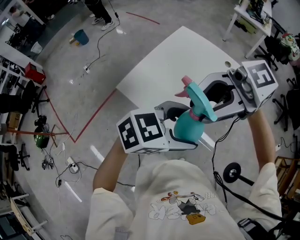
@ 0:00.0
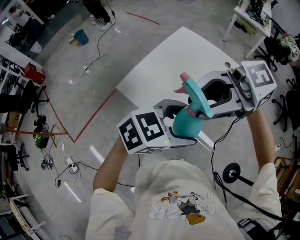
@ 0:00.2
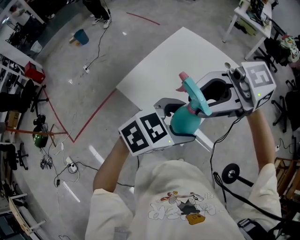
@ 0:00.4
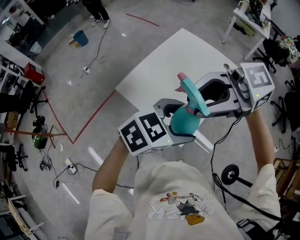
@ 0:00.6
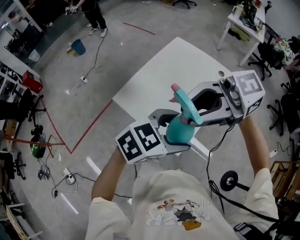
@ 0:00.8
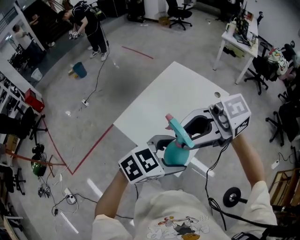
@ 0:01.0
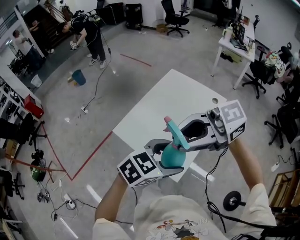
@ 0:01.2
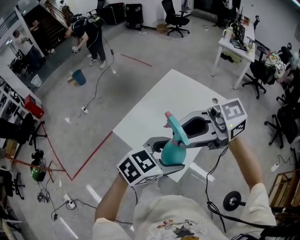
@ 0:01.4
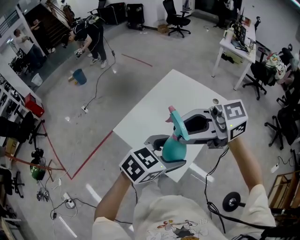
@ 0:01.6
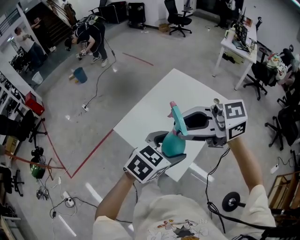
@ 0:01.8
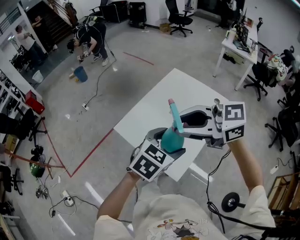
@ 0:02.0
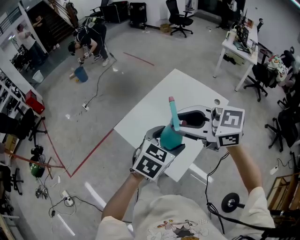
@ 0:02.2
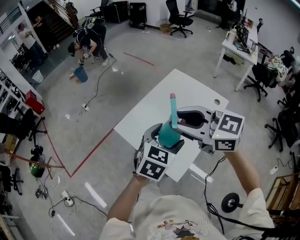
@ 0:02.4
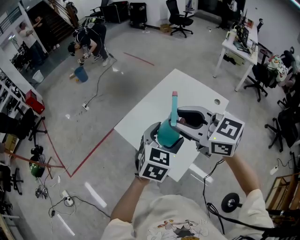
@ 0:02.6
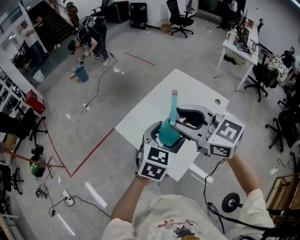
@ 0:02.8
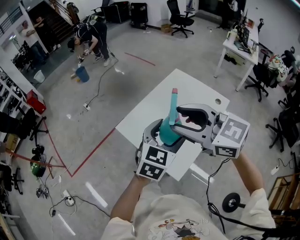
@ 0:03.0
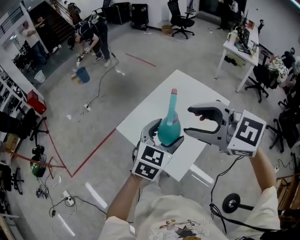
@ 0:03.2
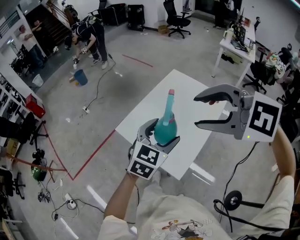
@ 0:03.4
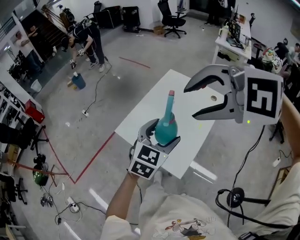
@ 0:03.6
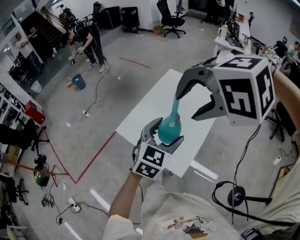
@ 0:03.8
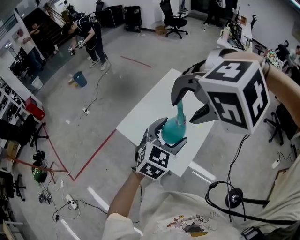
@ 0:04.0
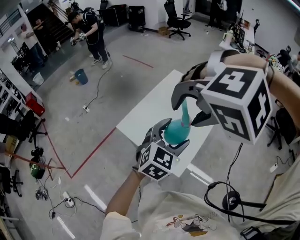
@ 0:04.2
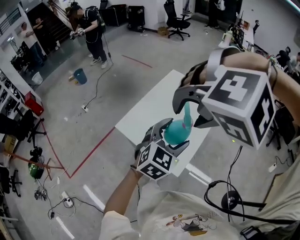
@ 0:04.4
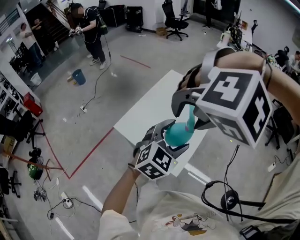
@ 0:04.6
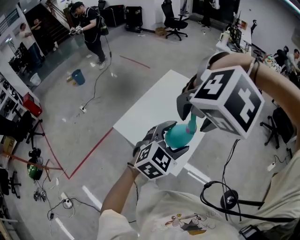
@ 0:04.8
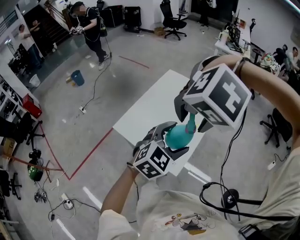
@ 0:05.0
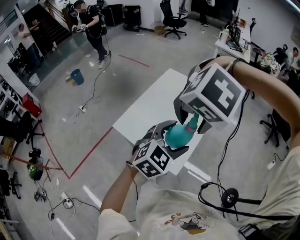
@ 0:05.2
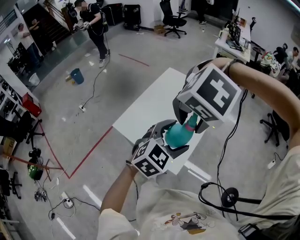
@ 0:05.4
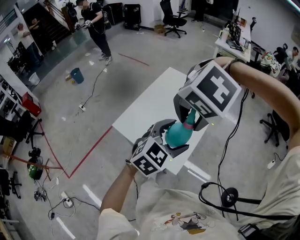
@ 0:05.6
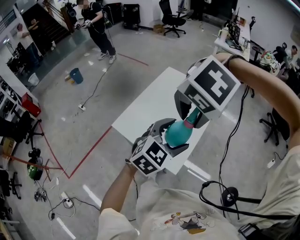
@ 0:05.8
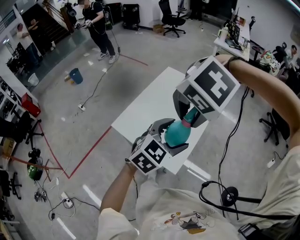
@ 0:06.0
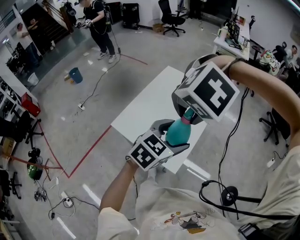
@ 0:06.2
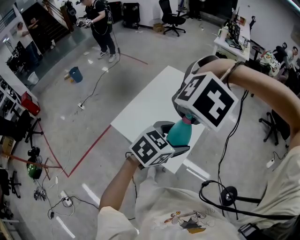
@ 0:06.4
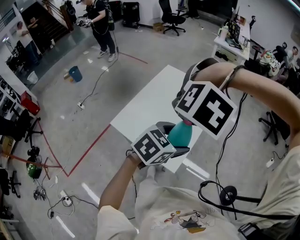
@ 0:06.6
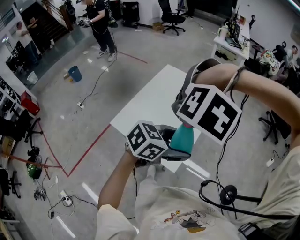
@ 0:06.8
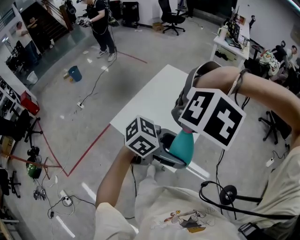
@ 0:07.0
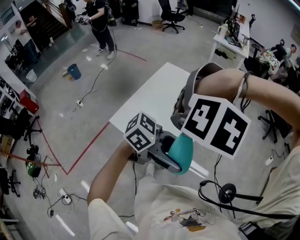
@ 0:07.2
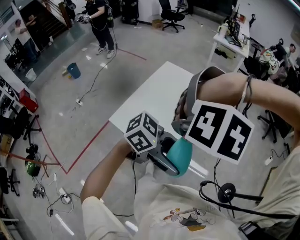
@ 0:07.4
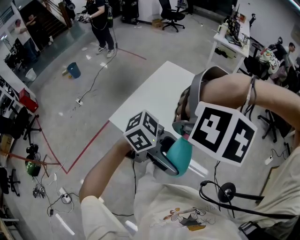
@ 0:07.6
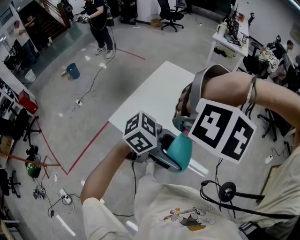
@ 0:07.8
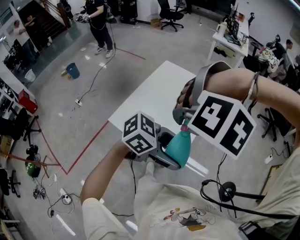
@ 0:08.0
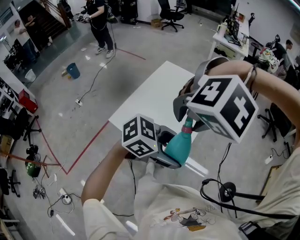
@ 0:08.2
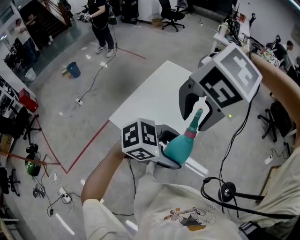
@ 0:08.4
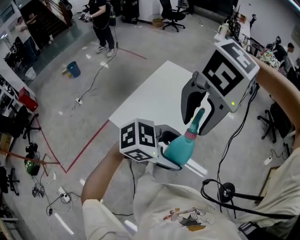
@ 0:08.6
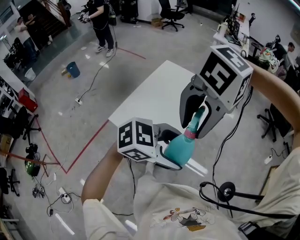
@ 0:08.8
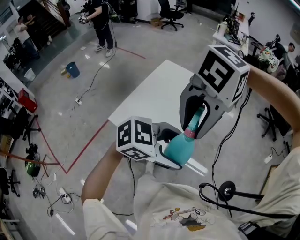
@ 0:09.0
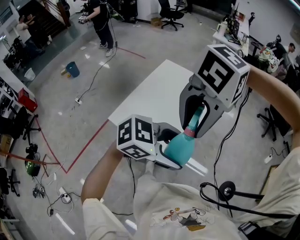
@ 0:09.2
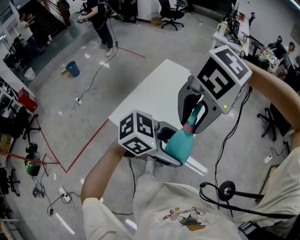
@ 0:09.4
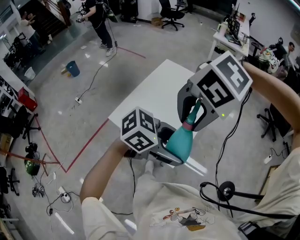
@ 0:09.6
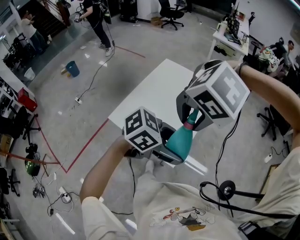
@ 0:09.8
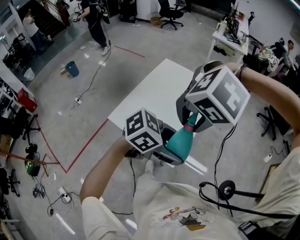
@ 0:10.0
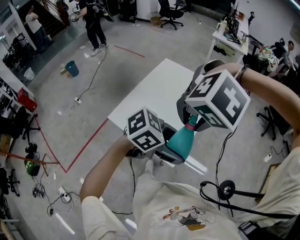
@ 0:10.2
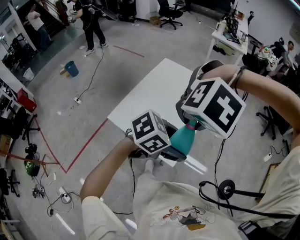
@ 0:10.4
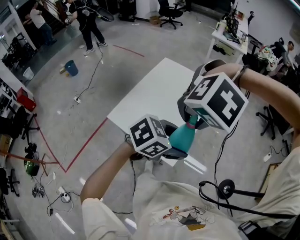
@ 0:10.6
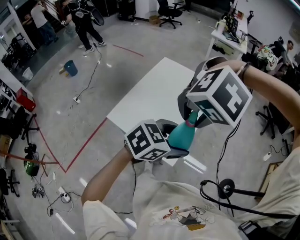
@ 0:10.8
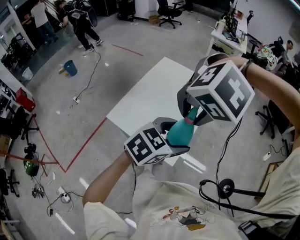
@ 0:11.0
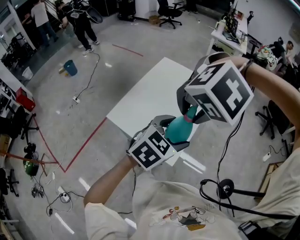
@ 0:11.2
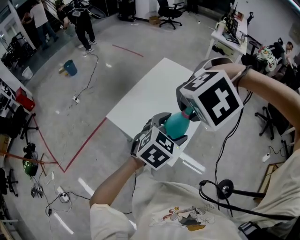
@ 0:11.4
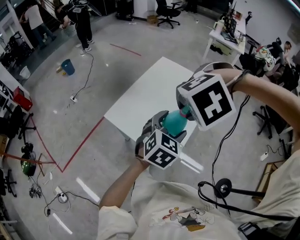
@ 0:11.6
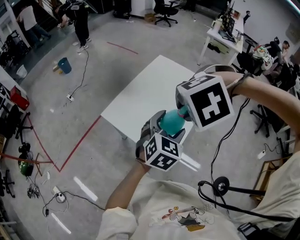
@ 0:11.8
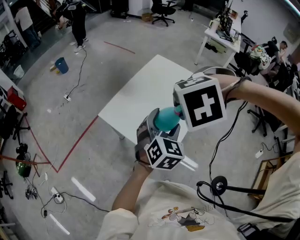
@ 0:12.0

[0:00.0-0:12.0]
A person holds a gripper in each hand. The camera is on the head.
0:00.0 to 0:01.6: The left gripper shifts by approximately 5 cm.
0:01.6 to 0:03.0: The right gripper changes its angle by approximately 40 degrees. Meanwhile the left gripper moves some 10 cm, and turns by some 30 degrees.
0:03.0 to 0:04.4: The left gripper ends up approximately 5 cm from where it was, and rotates about 20 degrees; the right gripper changes place by approximately 10 cm, and tips its fingers downward by about 60 degrees.
0:04.4 to 0:06.0: The right gripper shifts about 5 cm downward, and swivels some 30 degrees.
0:06.0 to 0:07.6: The left gripper moves about 15 cm, and swivels some 70 degrees; the right gripper changes place by some 5 cm, and swivels approximately 30 degrees.
0:07.6 to 0:09.0: The right gripper points its fingers roughly 30 degrees further upward, while the left gripper rotates roughly 20 degrees.
0:09.0 to 0:10.4: Both grippers travel together downward, roughly 5 cm. The right gripper angles its fingers downward, by about 30 degrees.
0:10.4 to 0:12.0: The right gripper ends up about 5 cm from where it was, and swivels approximately 40 degrees; the left gripper changes place by roughly 10 cm, and rotates approximately 70 degrees.

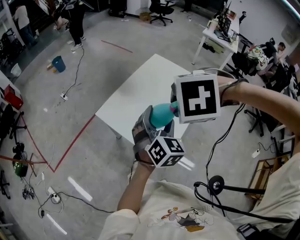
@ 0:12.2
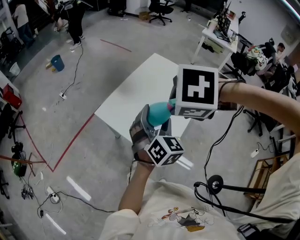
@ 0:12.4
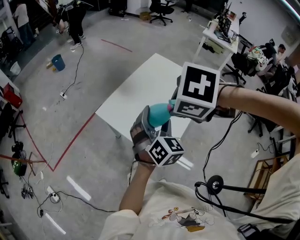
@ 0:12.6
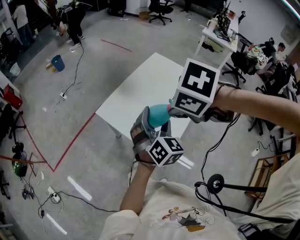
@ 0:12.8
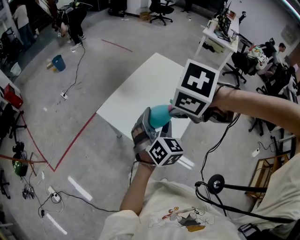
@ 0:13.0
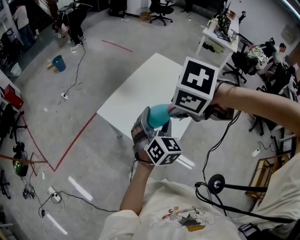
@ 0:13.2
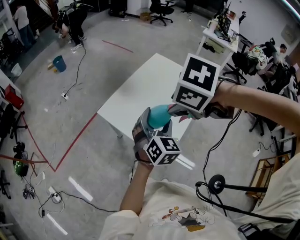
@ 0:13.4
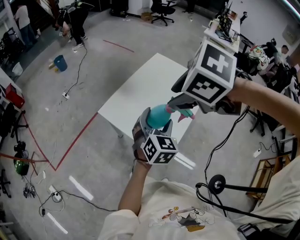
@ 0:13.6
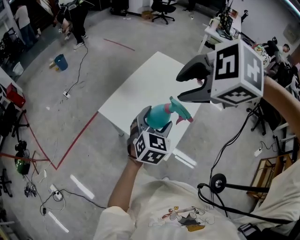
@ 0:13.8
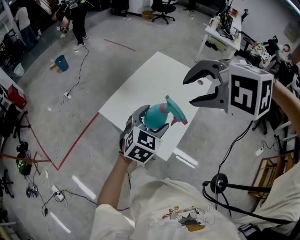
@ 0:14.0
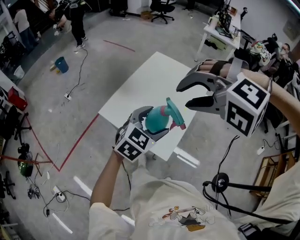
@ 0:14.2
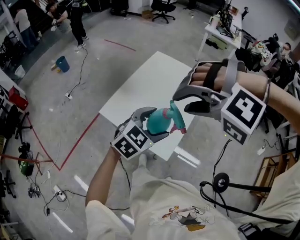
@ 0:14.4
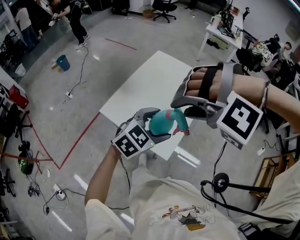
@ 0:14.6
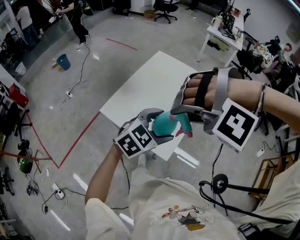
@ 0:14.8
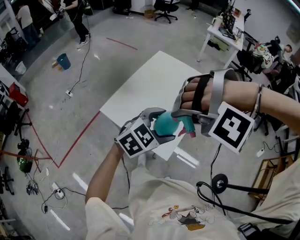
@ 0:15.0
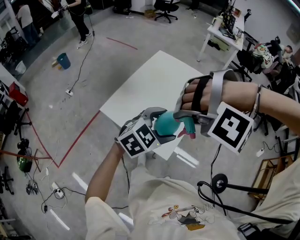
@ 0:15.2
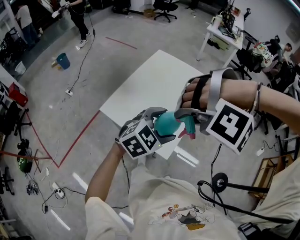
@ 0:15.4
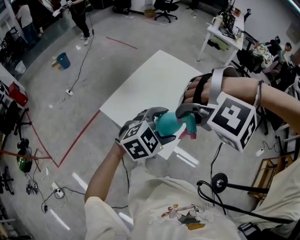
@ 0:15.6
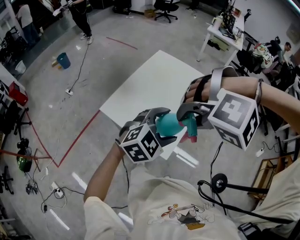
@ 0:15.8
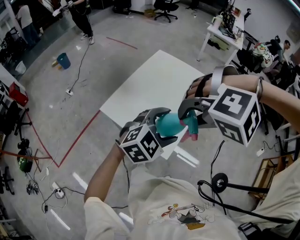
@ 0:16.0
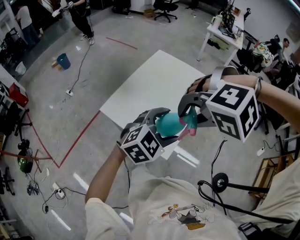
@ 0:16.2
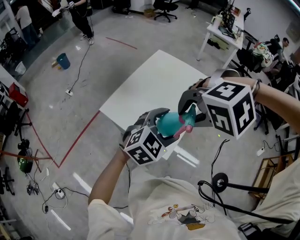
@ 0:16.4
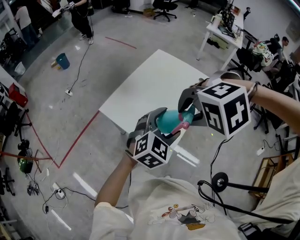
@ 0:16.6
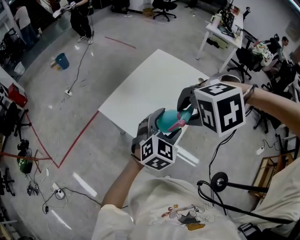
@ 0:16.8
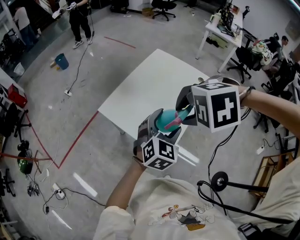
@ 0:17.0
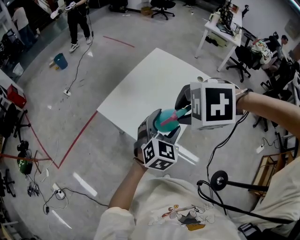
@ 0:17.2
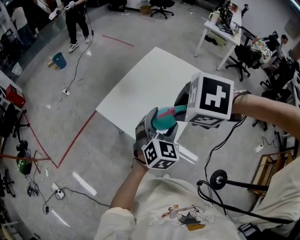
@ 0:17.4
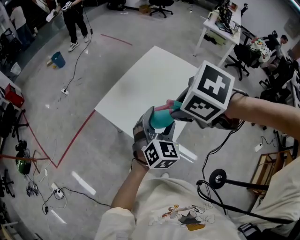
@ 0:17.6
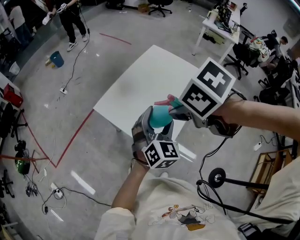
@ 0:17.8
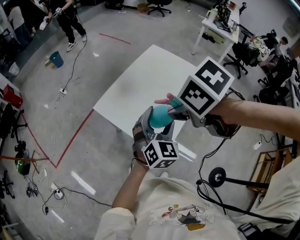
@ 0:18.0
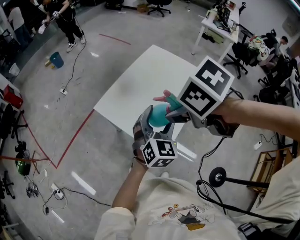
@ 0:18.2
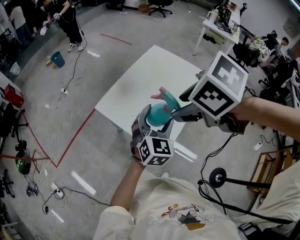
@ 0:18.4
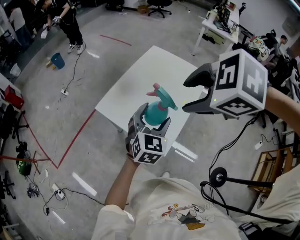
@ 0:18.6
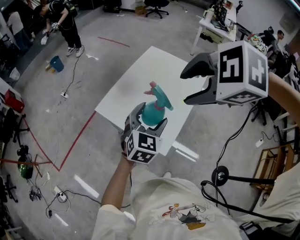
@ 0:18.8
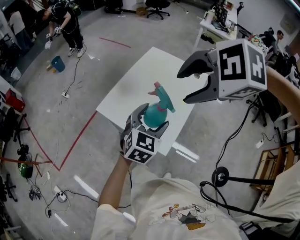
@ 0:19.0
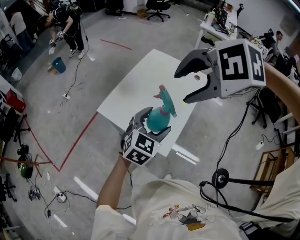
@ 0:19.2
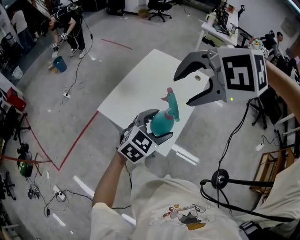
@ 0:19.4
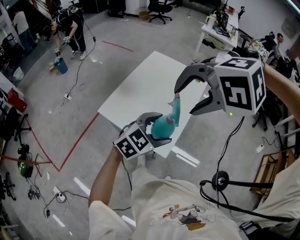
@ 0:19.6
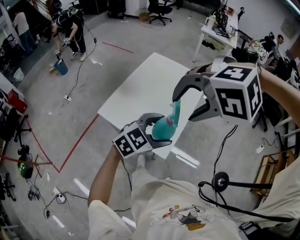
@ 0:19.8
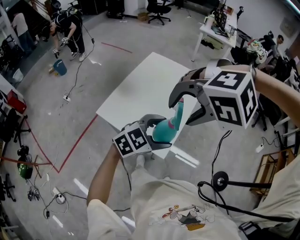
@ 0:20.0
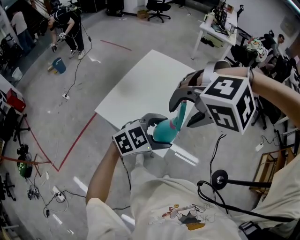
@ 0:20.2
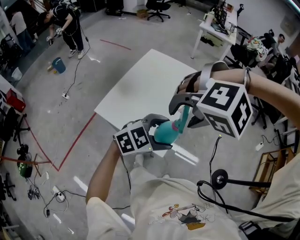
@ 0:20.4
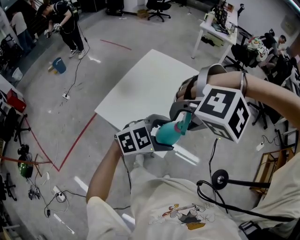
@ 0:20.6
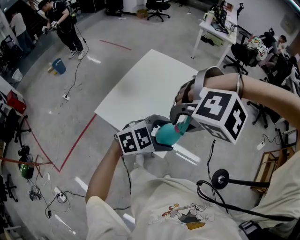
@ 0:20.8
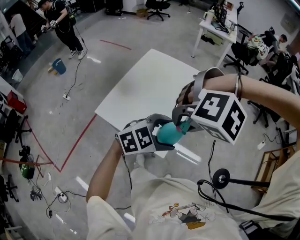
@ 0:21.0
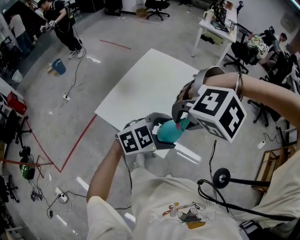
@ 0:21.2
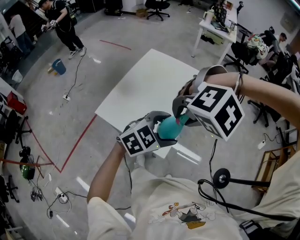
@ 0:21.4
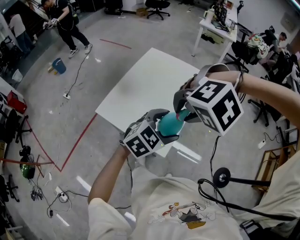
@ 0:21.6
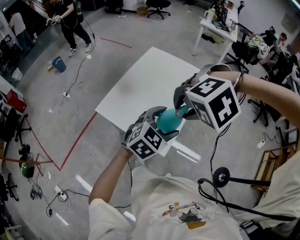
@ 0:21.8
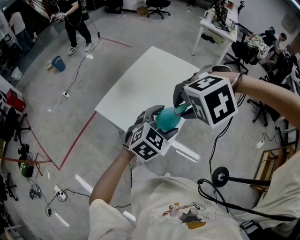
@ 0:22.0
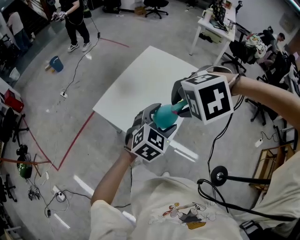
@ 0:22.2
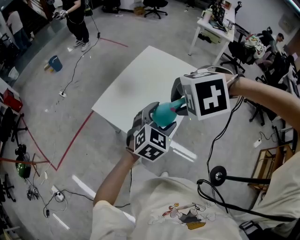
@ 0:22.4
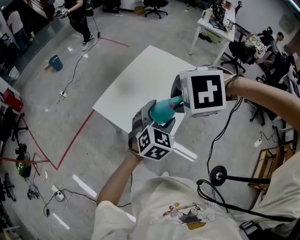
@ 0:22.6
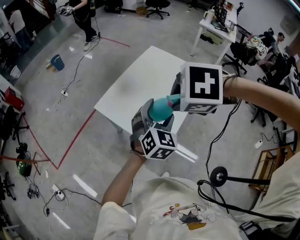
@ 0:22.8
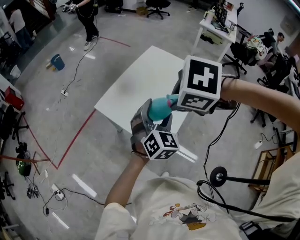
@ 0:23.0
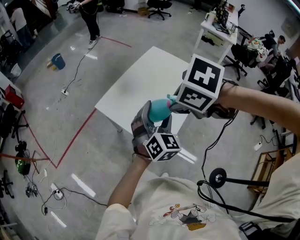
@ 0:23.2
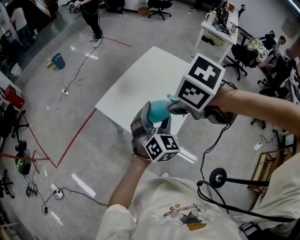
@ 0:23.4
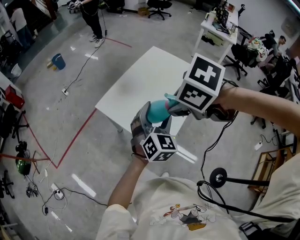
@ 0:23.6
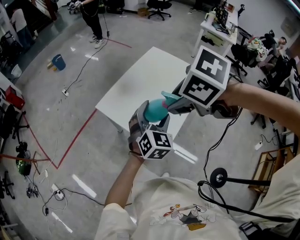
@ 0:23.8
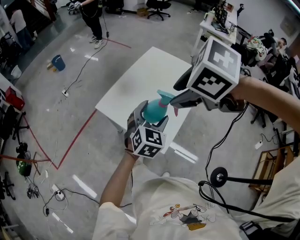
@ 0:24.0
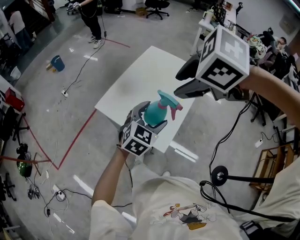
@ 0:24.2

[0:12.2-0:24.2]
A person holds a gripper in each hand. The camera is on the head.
0:12.2 to 0:13.8: The right gripper heads upward, covering approximately 5 cm, and turns by roughly 30 degrees.
0:13.8 to 0:15.2: The right gripper travels downward by about 5 cm, and twists some 70 degrees counterclockwise, seen from behind, while the left gripper shifts by roughly 5 cm, and changes its angle by approximately 40 degrees.
0:15.2 to 0:16.6: The right gripper changes its angle by some 40 degrees.
0:16.6 to 0:18.2: The left gripper changes its angle by approximately 30 degrees, while the right gripper twists approximately 70 degrees clockwise, seen from behind.
0:18.2 to 0:19.8: The left gripper shifts by roughly 10 cm, and changes its angle by roughly 50 degrees, while the right gripper shifts about 5 cm upward, and rotates around the line of its fingers by approximately 80 degrees, counterclockwise from behind.
0:19.8 to 0:21.2: The right gripper is displaced downward by roughly 5 cm, and closes.
0:21.2 to 0:22.6: The left gripper moves approximately 10 cm, and rotates about 50 degrees; the right gripper moves approximately 5 cm, and twists some 40 degrees clockwise, seen from behind.
0:22.6 to 0:24.2: The right gripper shifts approximately 5 cm upward, and turns by some 30 degrees.
